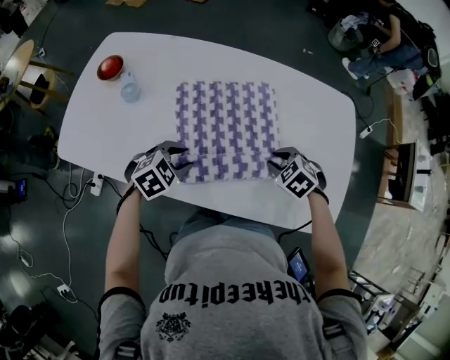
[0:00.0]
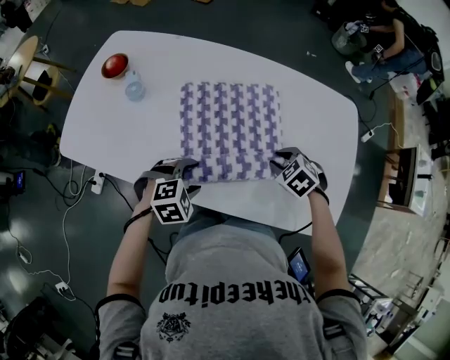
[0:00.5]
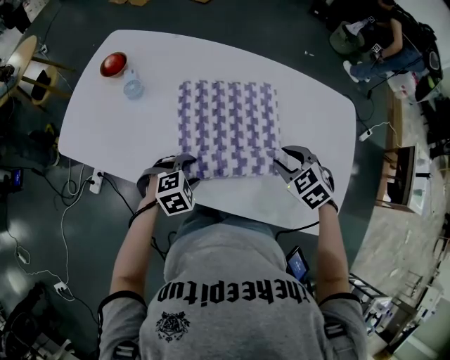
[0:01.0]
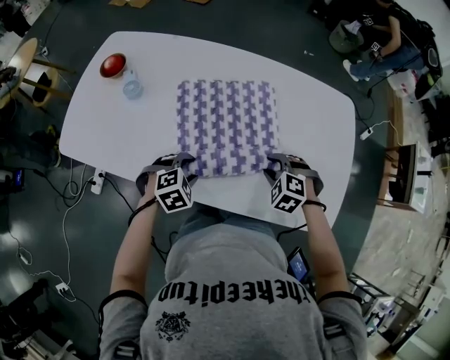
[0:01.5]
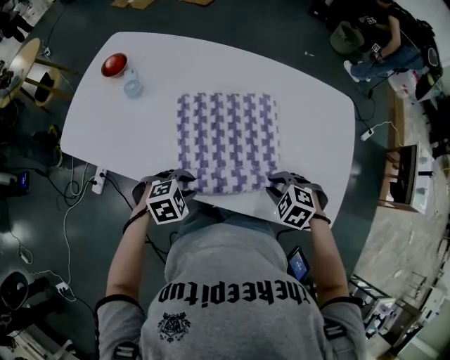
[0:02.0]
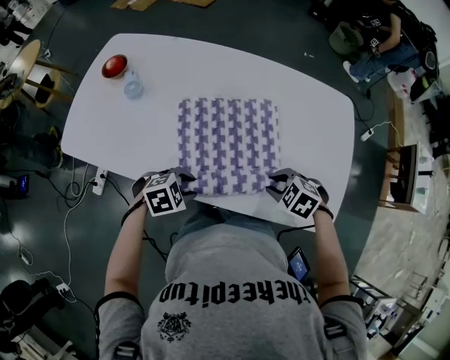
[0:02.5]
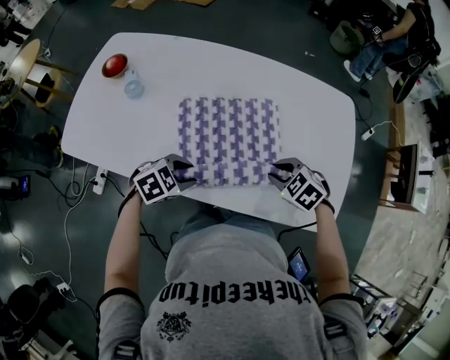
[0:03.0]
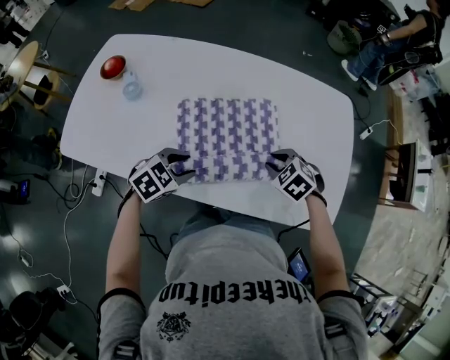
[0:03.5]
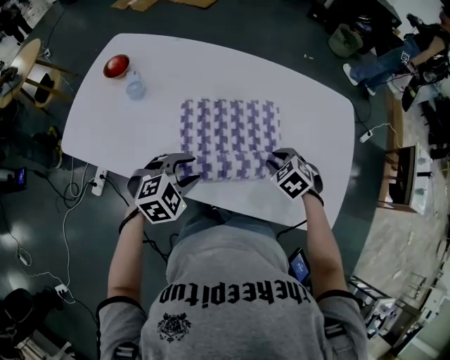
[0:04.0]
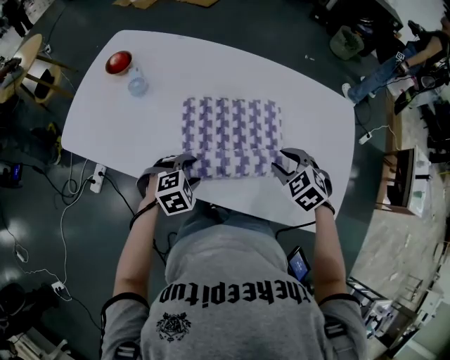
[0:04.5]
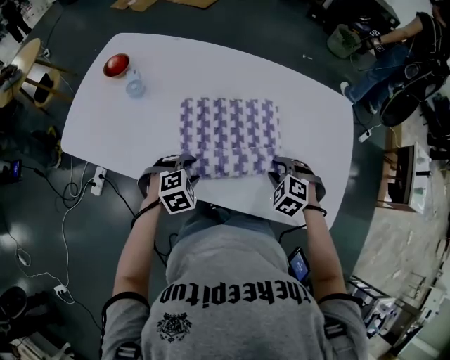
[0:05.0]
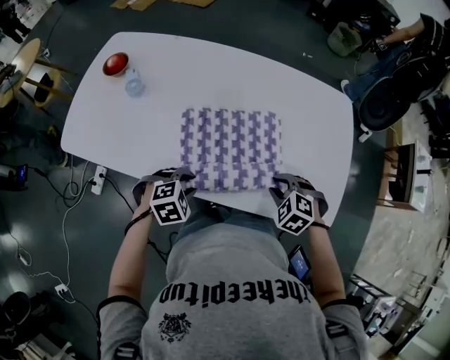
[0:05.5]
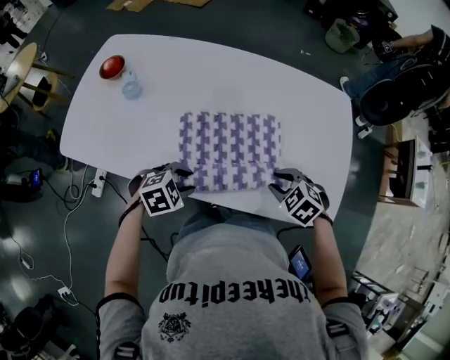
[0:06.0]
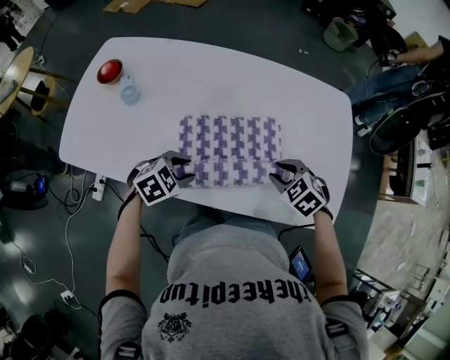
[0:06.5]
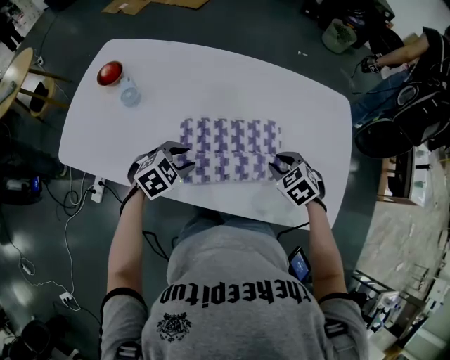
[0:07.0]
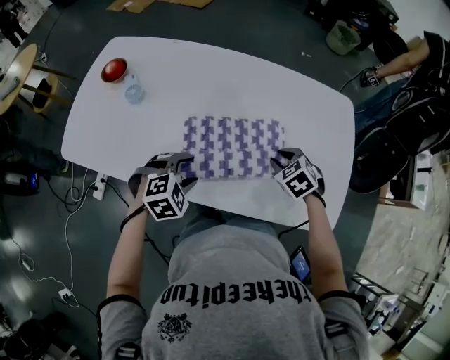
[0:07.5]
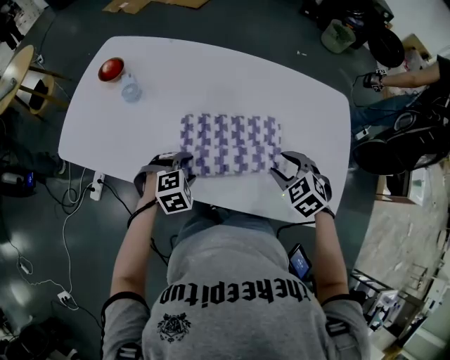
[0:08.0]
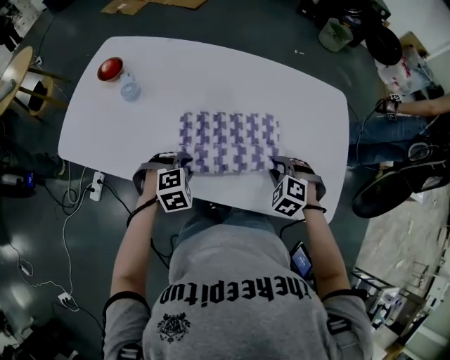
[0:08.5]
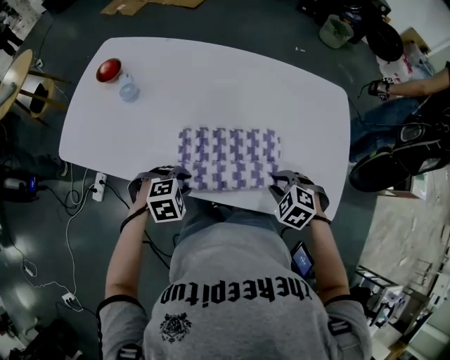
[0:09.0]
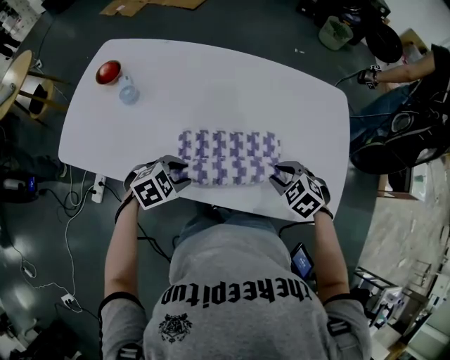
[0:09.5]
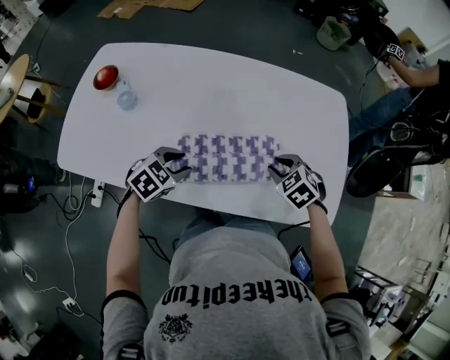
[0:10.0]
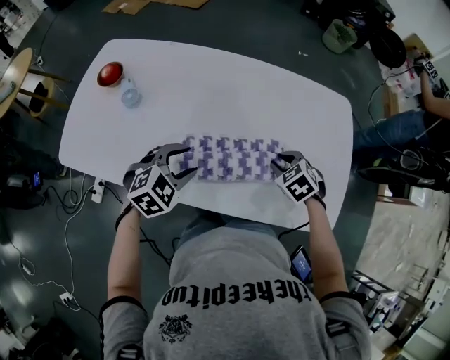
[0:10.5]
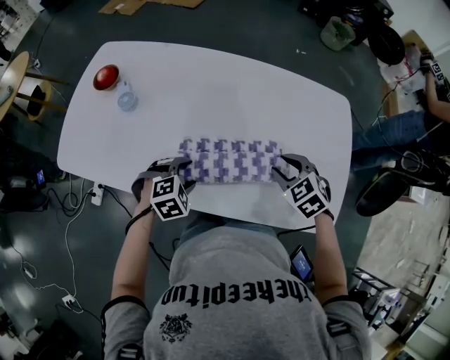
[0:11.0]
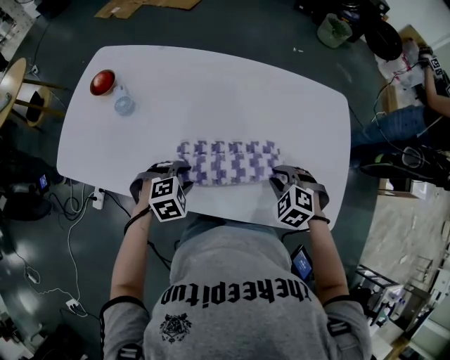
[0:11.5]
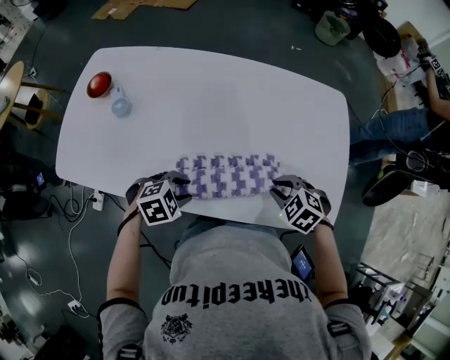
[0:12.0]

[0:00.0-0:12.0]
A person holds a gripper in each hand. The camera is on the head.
0:00.0 to 0:02.0: The right gripper changes place by about 5 cm. The left gripper ends up roughly 5 cm from where it was, and opens, then closes again.
0:02.0 to 0:04.0: The left gripper changes place by roughly 10 cm. The right gripper moves approximately 10 cm.
0:04.0 to 0:06.0: The left gripper shifts approximately 5 cm downward.
0:06.0 to 0:08.0: The right gripper shifts by approximately 5 cm. The left gripper rotates approximately 20 degrees, and opens.
0:08.0 to 0:10.0: Both grippers move forward, about 5 cm. The left gripper rotates roughly 30 degrees.
0:10.0 to 0:12.0: The left gripper changes place by some 5 cm, and swivels about 20 degrees.

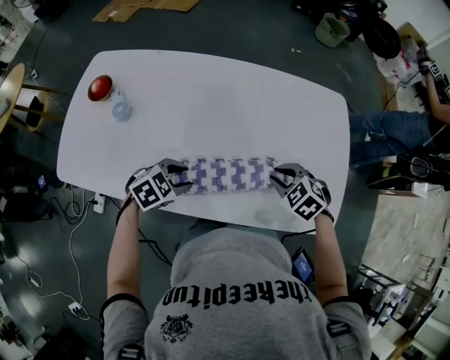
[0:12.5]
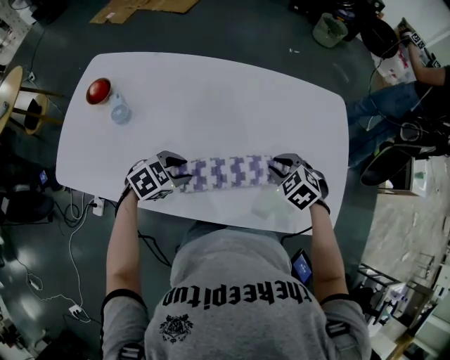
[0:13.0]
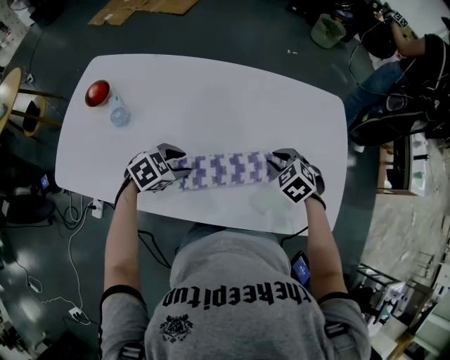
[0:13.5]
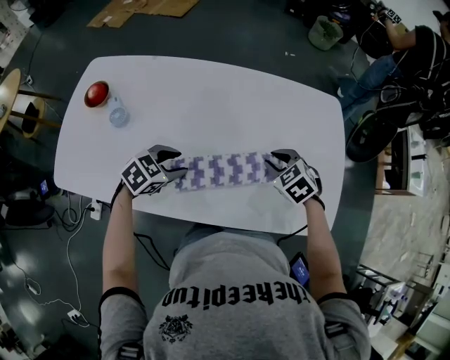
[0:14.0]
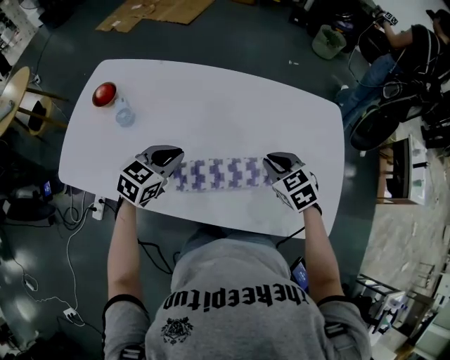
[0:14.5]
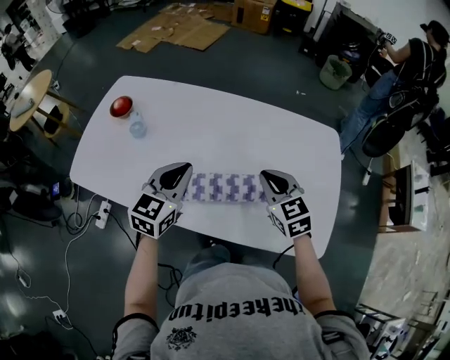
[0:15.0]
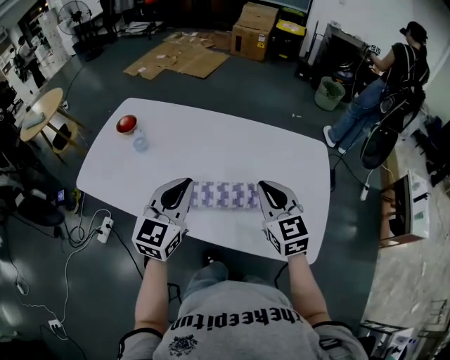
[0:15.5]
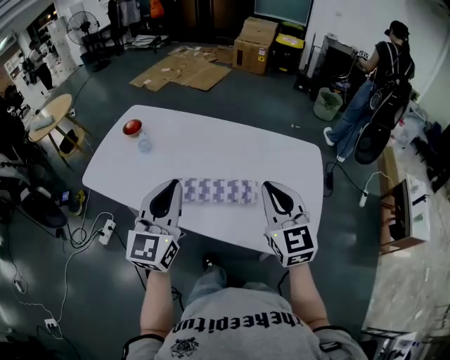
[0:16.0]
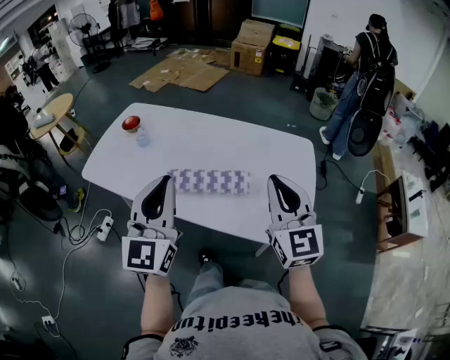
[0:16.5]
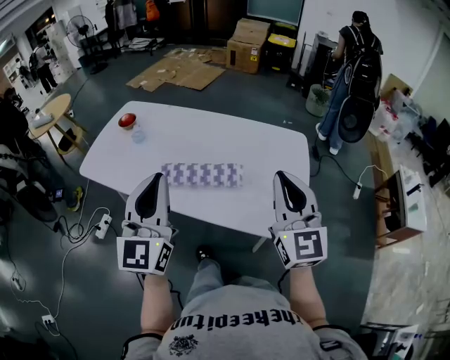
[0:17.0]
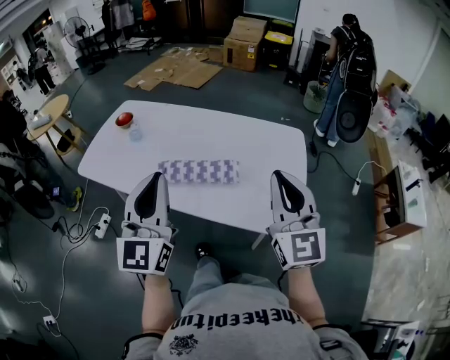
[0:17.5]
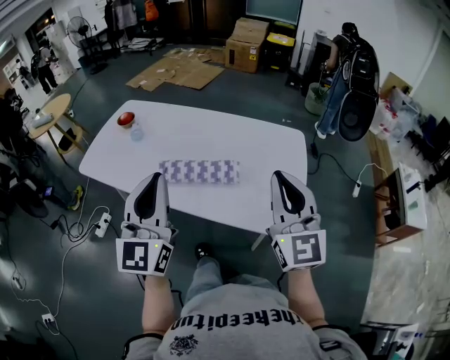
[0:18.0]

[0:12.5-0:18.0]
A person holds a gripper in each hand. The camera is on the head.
0:12.5 to 0:14.5: The right gripper is displaced to the left and upward by approximately 10 cm, and swivels approximately 20 degrees, while the left gripper shifts roughly 15 cm upward, forward and to the left, changes its angle by roughly 30 degrees, and closes up.
0:14.5 to 0:16.0: The two grippers go about 30 cm upward and backward. The left gripper points its fingers roughly 40 degrees further upward. Meanwhile the right gripper angles its fingers upward, by some 40 degrees.
0:16.0 to 0:18.0: The right gripper travels backward, upward and to the right by approximately 15 cm, while the left gripper shifts roughly 15 cm backward and upward.

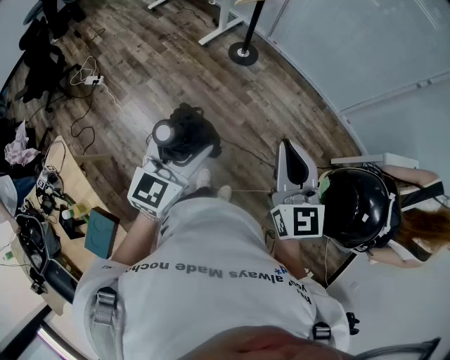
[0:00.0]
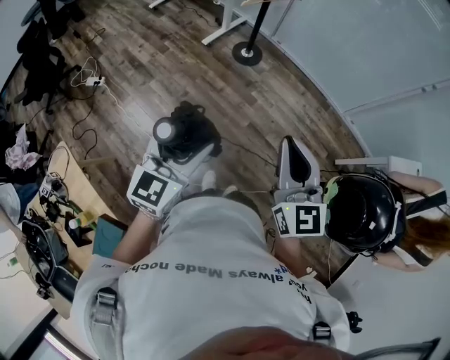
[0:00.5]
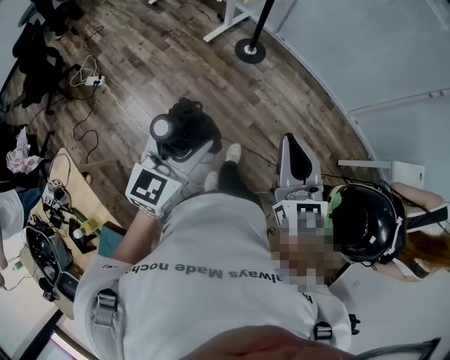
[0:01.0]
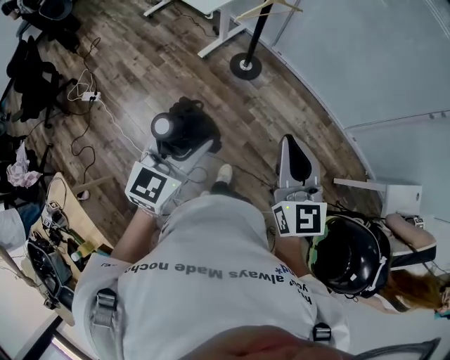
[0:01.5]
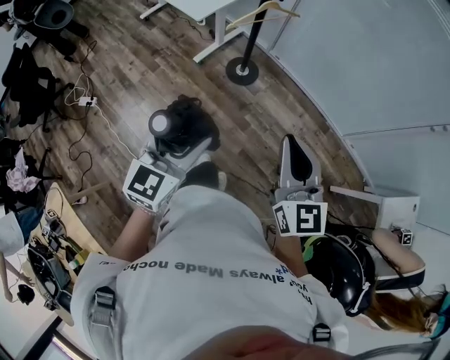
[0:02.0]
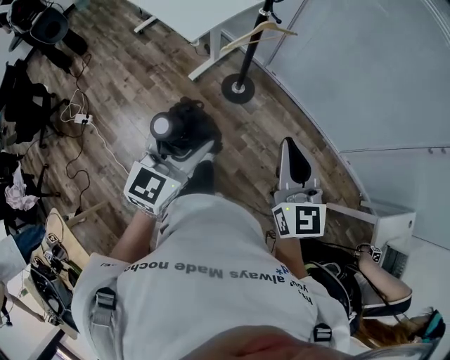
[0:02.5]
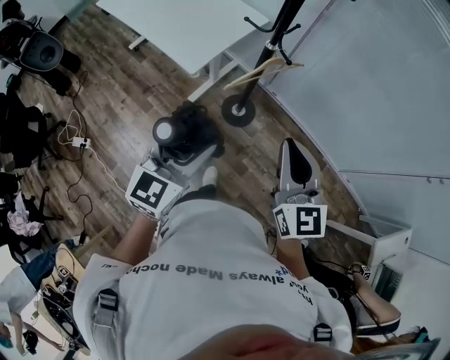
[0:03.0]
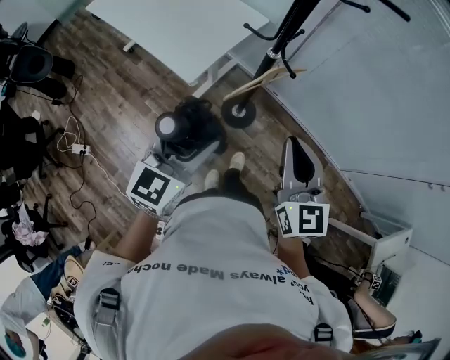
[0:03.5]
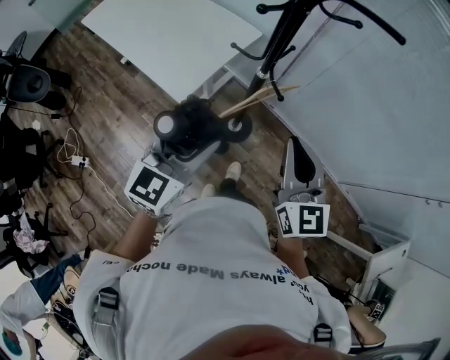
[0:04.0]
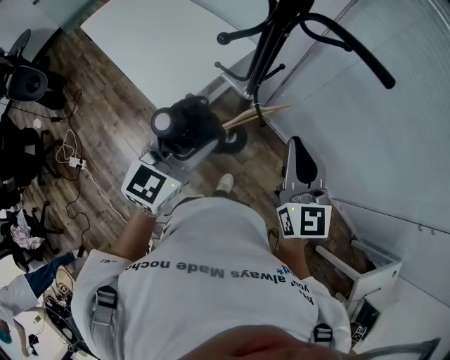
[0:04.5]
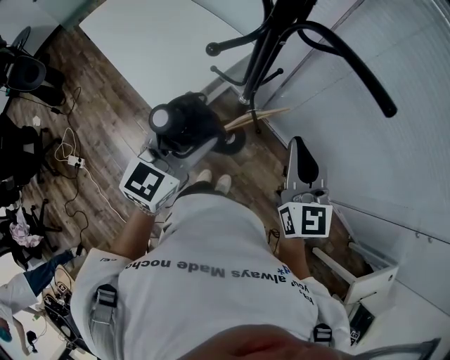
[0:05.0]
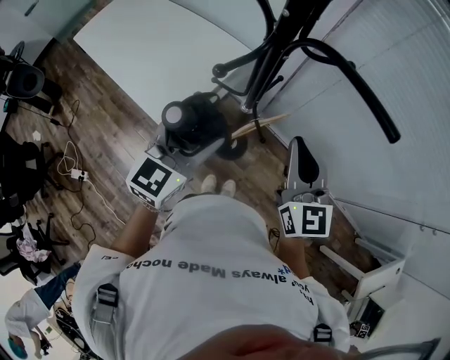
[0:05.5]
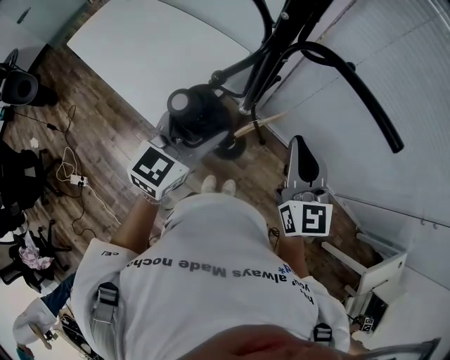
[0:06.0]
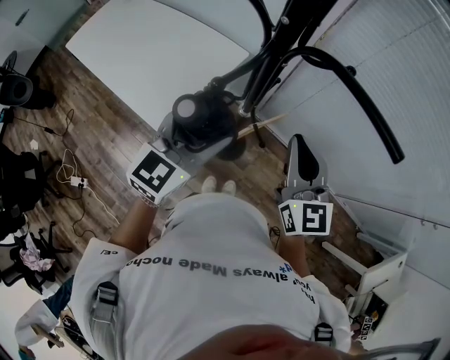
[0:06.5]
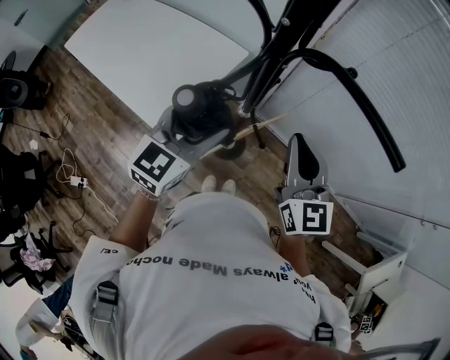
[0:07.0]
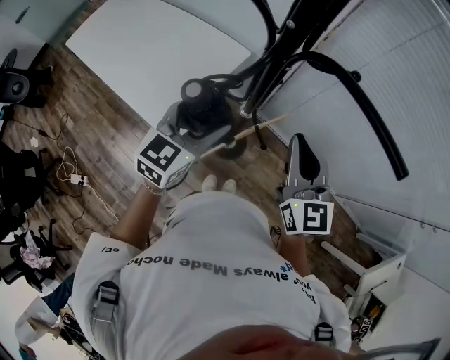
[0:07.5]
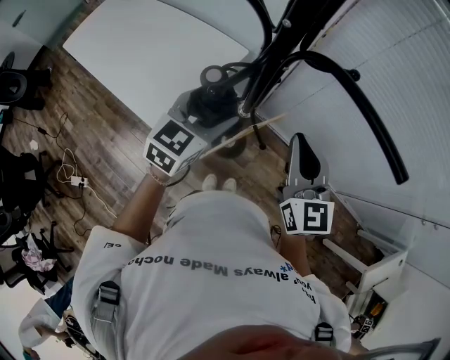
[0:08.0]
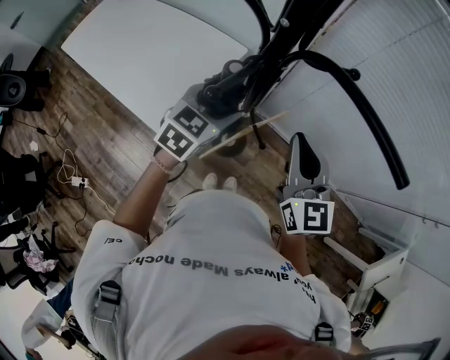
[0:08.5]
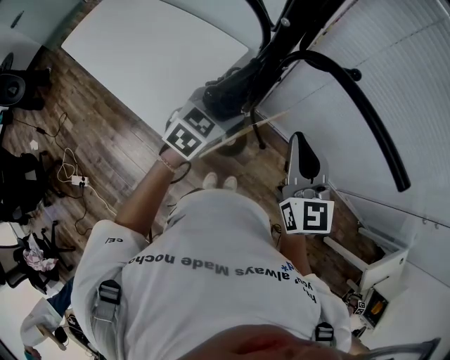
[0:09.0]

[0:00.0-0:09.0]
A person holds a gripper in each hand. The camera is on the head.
0:00.0 to 0:02.0: Both grippers move forward, some 40 cm.
0:02.0 to 0:04.5: The pair of grippers is taken forward, roughly 70 cm.
0:04.5 to 0:07.0: Both grippers move forward, roughly 10 cm.
0:07.0 to 0:09.0: The left gripper travels downward and forward by roughly 10 cm.
